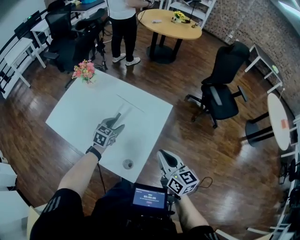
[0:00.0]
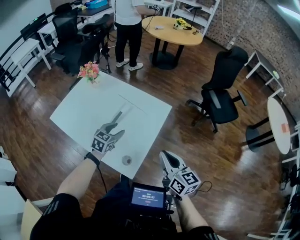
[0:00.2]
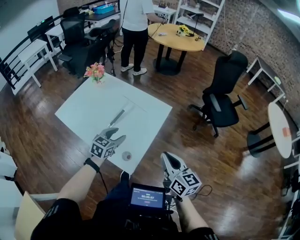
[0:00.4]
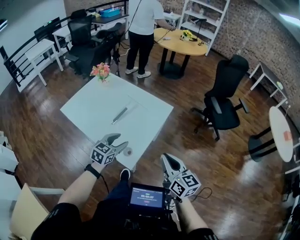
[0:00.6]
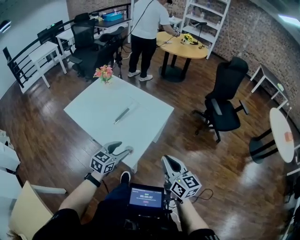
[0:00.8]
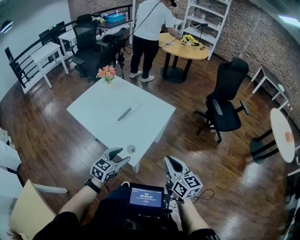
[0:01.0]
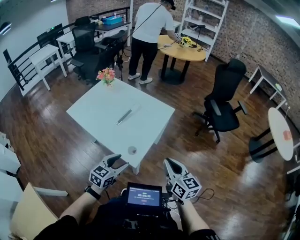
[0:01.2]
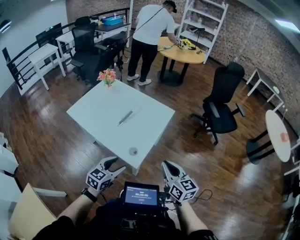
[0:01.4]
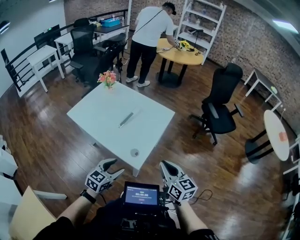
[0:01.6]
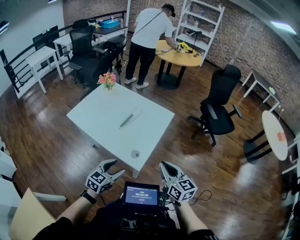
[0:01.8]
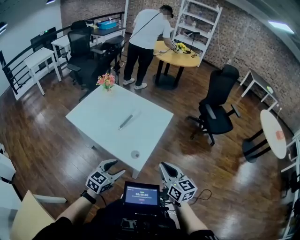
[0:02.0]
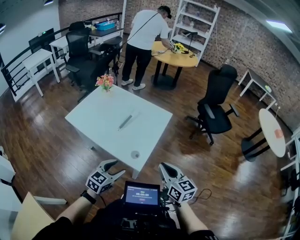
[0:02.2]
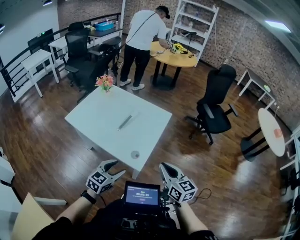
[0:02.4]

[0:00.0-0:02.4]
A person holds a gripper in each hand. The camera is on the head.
0:00.0 to 0:01.2: The left gripper is displaced backward by roughly 35 cm. The right gripper moves backward, roughly 20 cm.
0:01.2 to 0:02.4: Both grippers move to the left, approximately 5 cm.

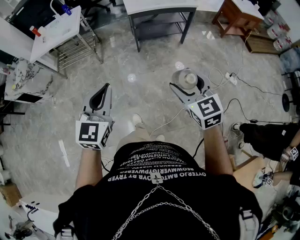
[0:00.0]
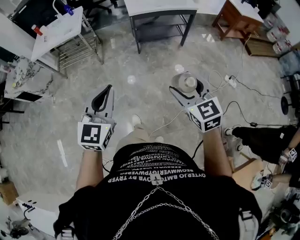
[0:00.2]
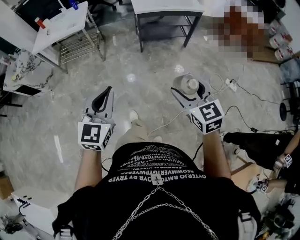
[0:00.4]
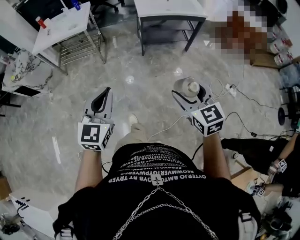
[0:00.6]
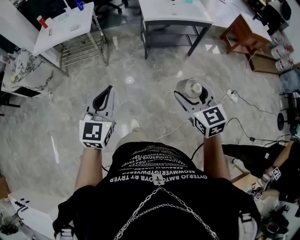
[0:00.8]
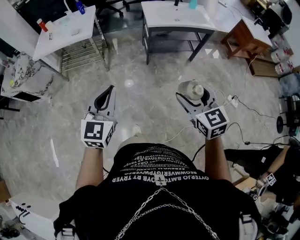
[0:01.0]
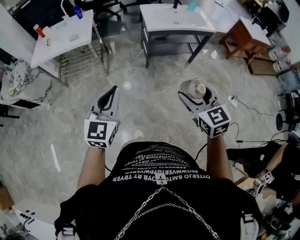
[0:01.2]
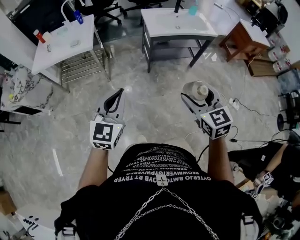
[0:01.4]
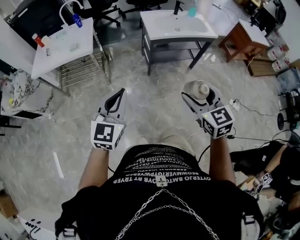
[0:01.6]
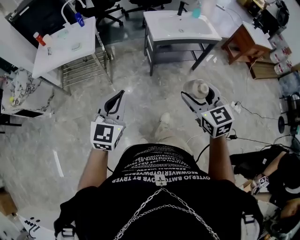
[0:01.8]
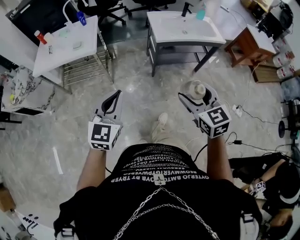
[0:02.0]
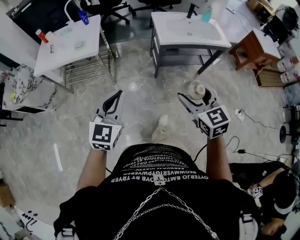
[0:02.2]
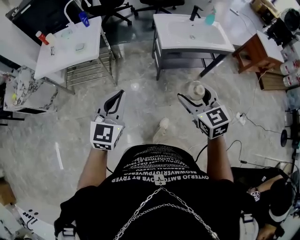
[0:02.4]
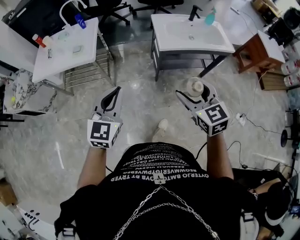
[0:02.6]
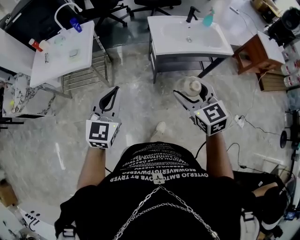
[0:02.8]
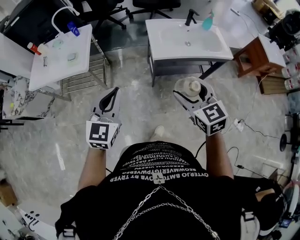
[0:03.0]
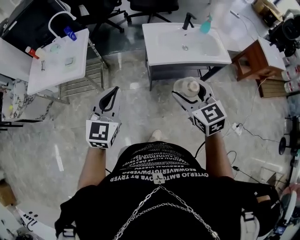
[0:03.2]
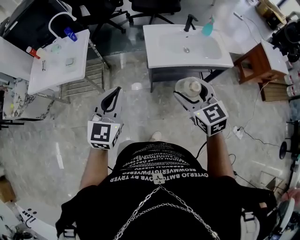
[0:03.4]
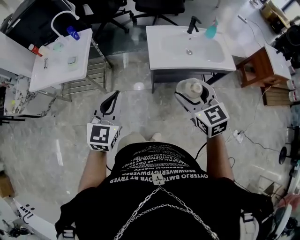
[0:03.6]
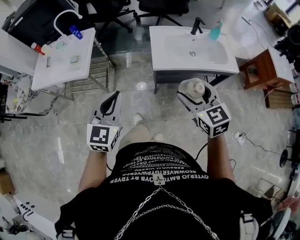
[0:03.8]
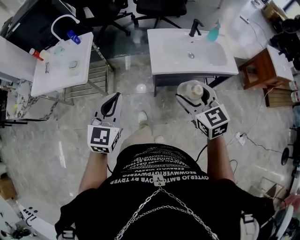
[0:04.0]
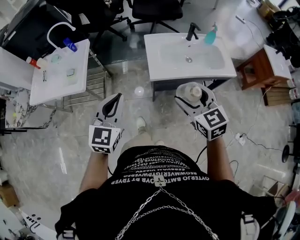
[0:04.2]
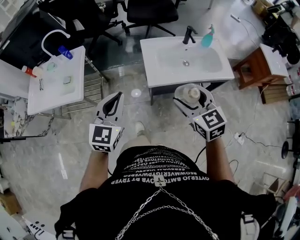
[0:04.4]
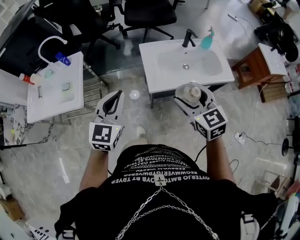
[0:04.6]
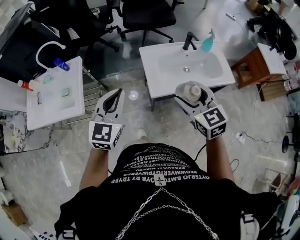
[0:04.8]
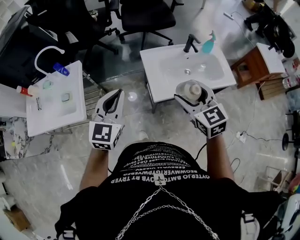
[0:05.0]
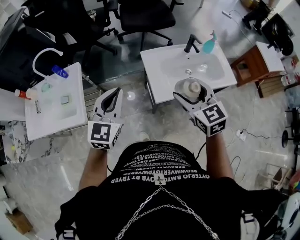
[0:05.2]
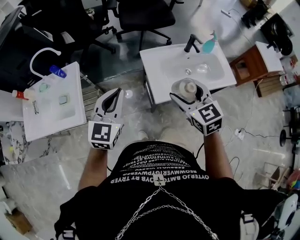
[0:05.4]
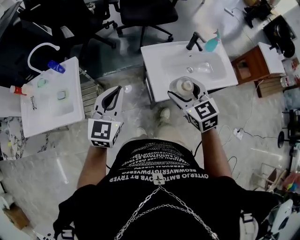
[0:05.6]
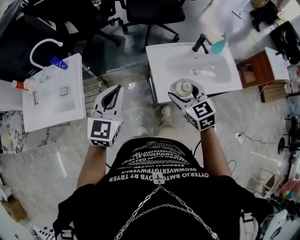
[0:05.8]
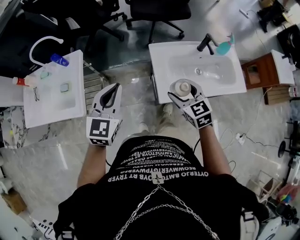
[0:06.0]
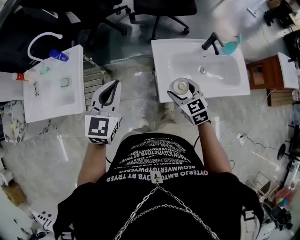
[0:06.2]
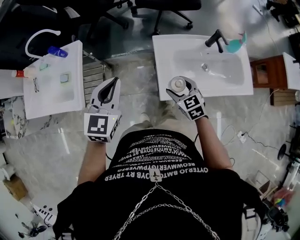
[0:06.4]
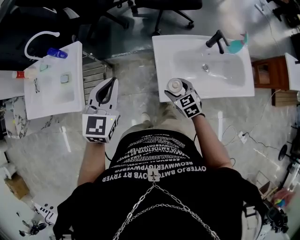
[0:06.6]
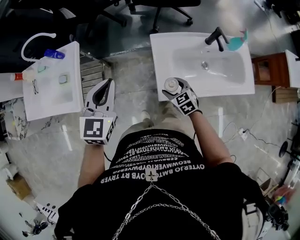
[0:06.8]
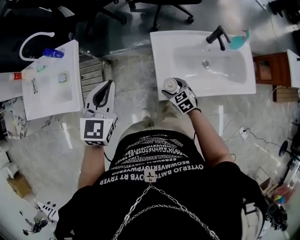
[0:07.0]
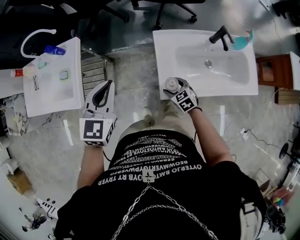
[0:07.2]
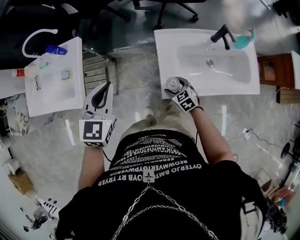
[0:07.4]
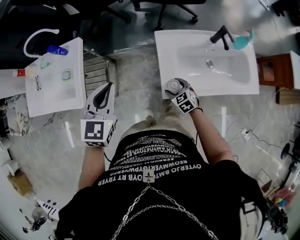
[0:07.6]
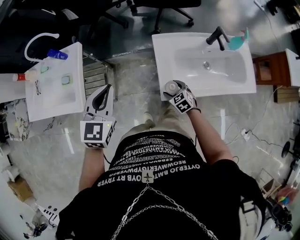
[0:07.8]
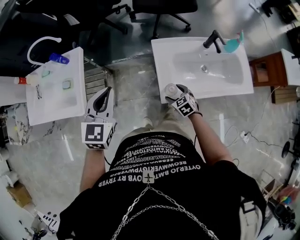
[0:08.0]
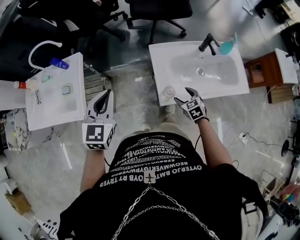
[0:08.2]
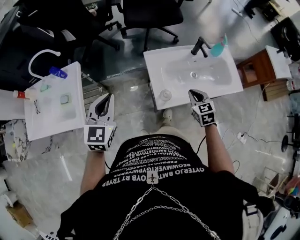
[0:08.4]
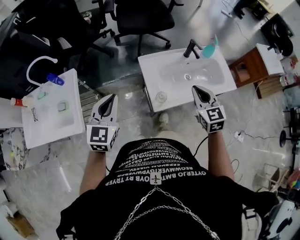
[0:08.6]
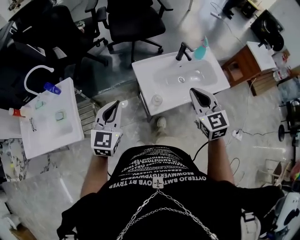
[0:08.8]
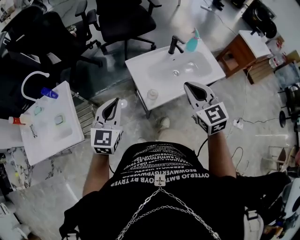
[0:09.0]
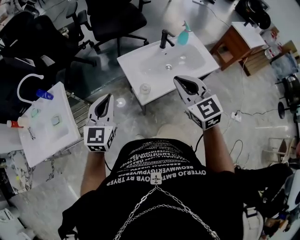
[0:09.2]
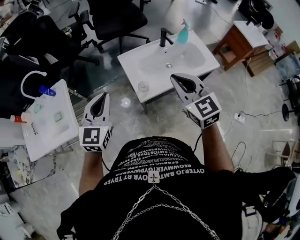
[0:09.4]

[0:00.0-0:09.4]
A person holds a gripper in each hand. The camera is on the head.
0:00.0 to 0:01.6: The two grippers go about 30 cm forward and to the left.
0:01.6 to 0:03.2: The two grippers go about 30 cm forward.
0:03.2 to 0:04.8: Both grippers travel together forward, roughly 25 cm.
0:04.8 to 0:06.2: The right gripper heads downward and forward, covering roughly 25 cm, while the left gripper goes about 15 cm forward and downward.
0:06.2 to 0:07.8: The right gripper heads downward, covering roughly 20 cm.
0:07.8 to 0:09.4: The left gripper ends up about 15 cm from where it was, and changes its angle by approximately 20 degrees, while the right gripper travels upward by roughly 40 cm, points its fingers about 40 degrees further upward, and closes up.

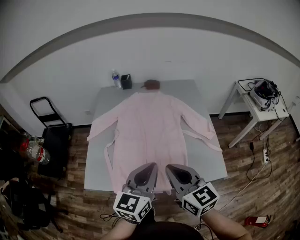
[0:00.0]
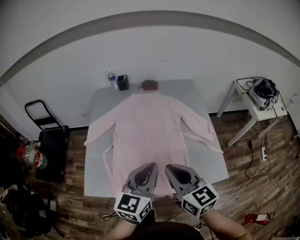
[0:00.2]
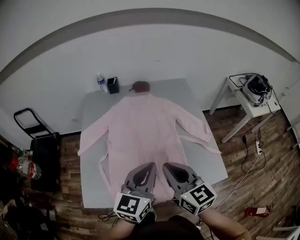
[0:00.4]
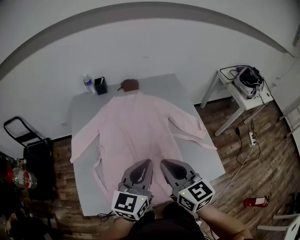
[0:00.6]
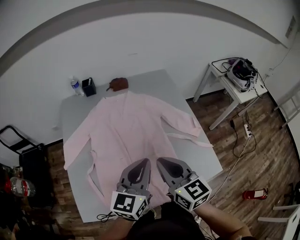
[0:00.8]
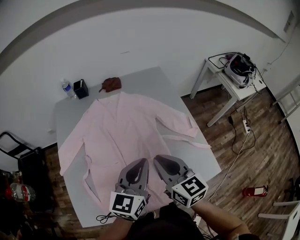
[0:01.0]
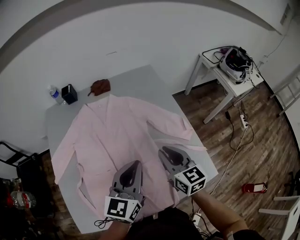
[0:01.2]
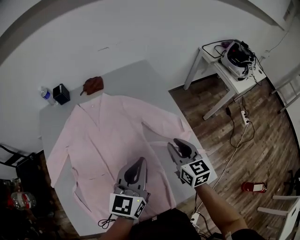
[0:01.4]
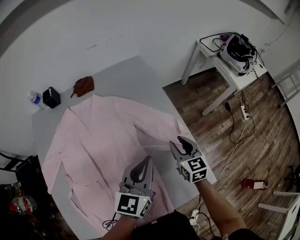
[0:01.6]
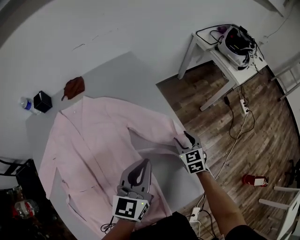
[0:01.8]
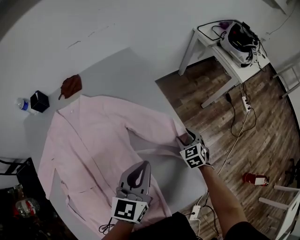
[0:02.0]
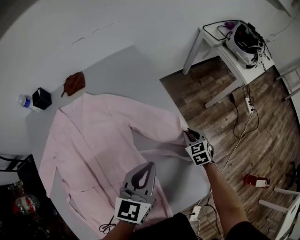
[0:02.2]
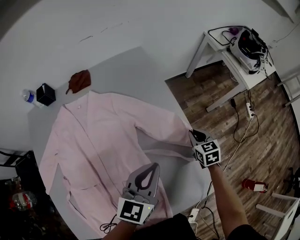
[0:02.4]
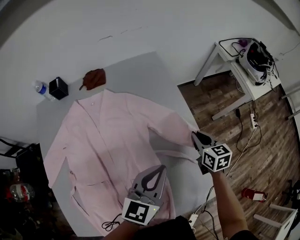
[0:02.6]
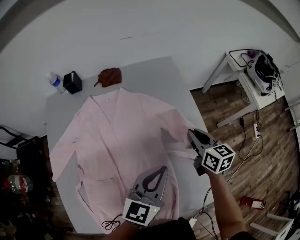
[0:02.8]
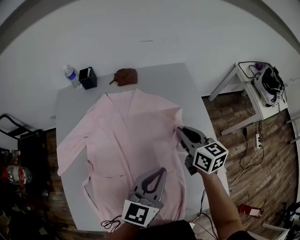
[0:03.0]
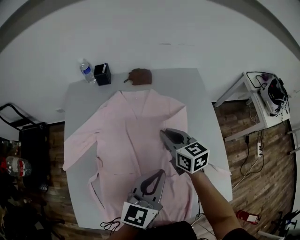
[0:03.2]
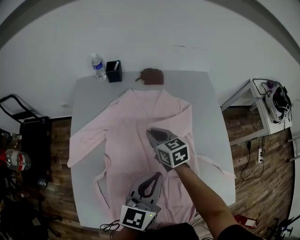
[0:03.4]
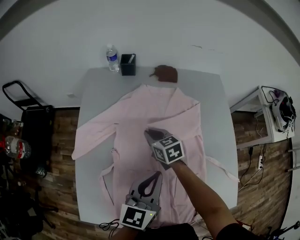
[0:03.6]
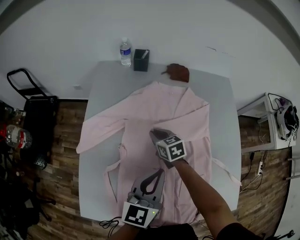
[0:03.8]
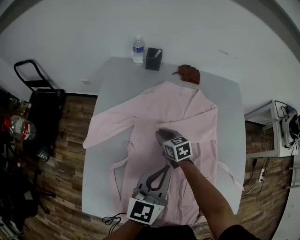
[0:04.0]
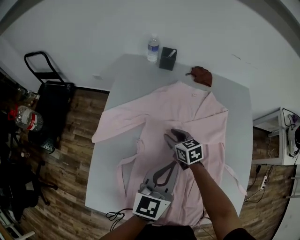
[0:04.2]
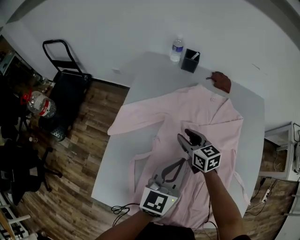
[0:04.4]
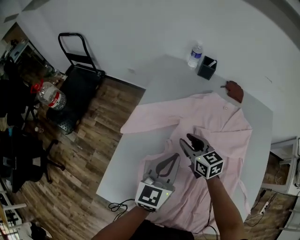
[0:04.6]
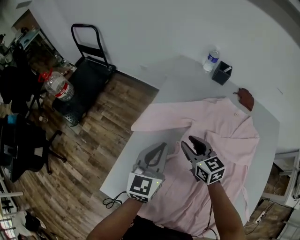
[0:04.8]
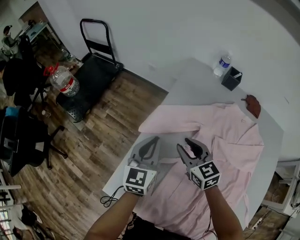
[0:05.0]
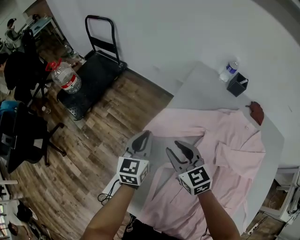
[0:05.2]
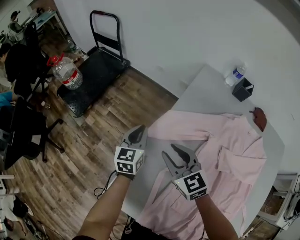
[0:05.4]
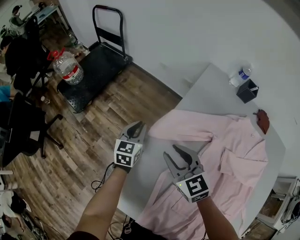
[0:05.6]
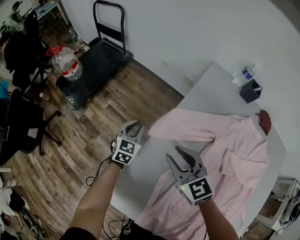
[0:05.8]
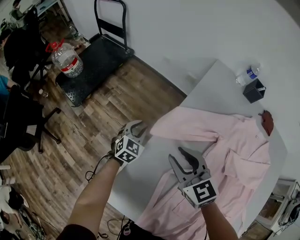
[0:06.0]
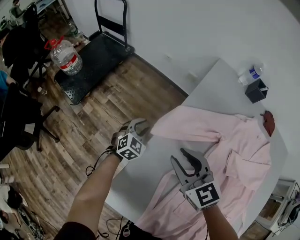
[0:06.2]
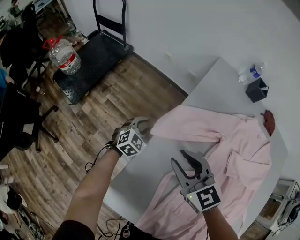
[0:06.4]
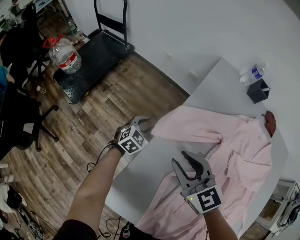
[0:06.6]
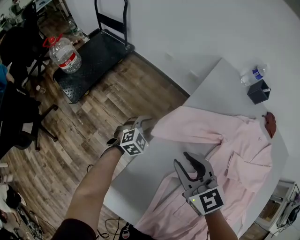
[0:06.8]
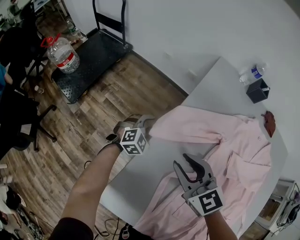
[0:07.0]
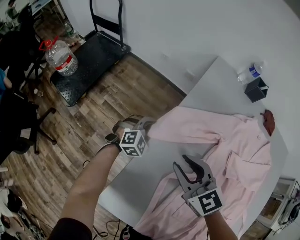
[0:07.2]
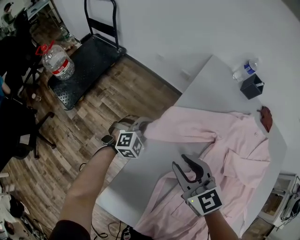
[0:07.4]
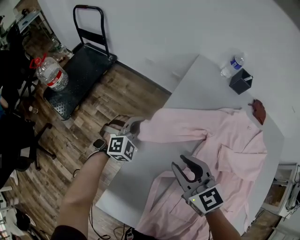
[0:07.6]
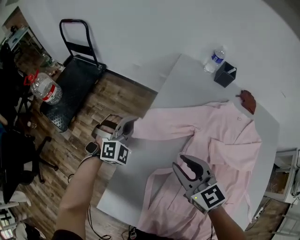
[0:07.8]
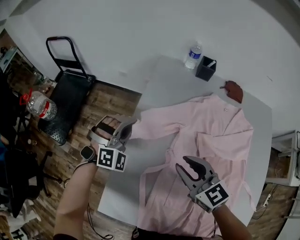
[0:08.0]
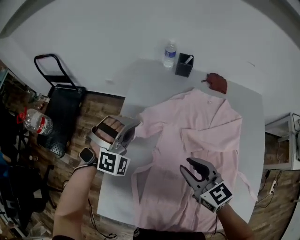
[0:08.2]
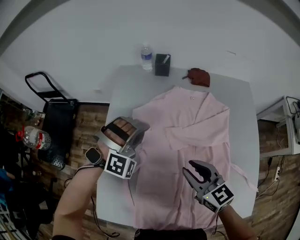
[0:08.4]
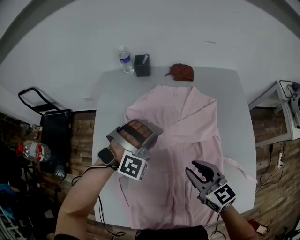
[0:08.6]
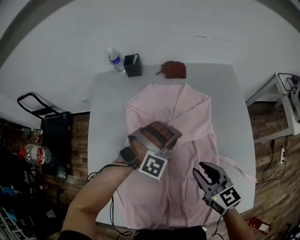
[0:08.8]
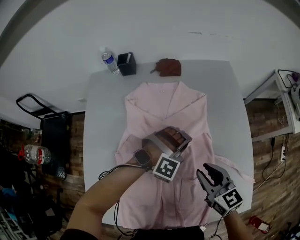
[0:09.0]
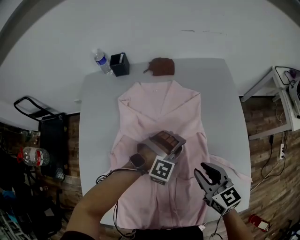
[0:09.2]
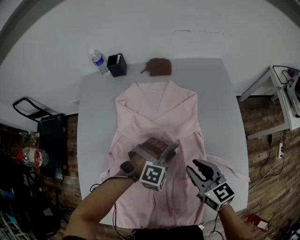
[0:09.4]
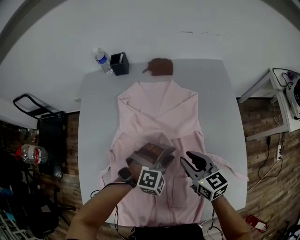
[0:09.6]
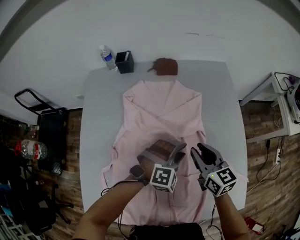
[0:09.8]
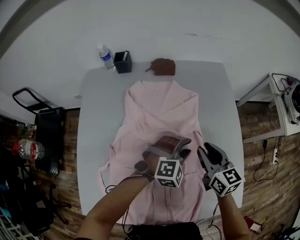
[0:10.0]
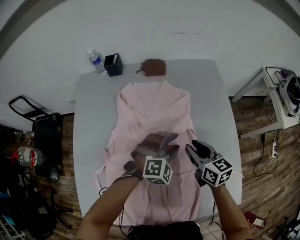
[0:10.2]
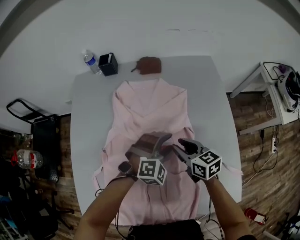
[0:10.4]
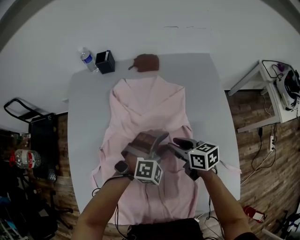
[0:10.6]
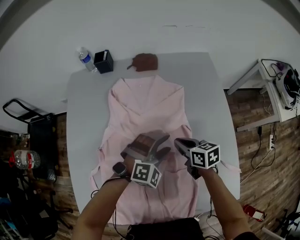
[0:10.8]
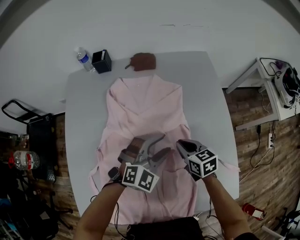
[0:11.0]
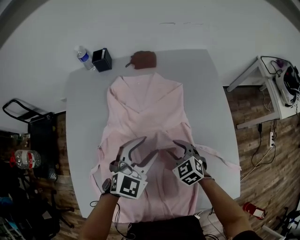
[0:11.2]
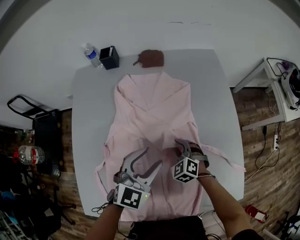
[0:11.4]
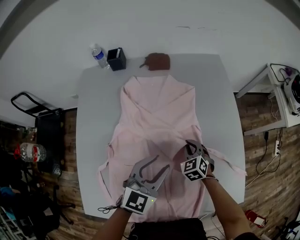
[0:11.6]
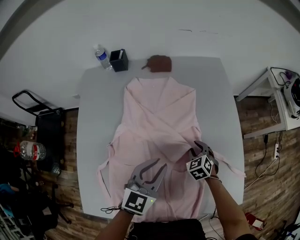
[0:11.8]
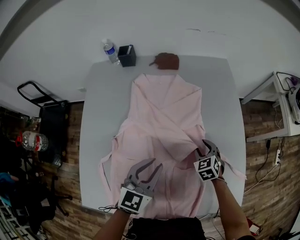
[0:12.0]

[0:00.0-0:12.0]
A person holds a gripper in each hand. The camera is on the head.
0:00.0 to 0:01.6: The right gripper changes place by some 50 cm, turns by approximately 40 degrees, and opens; the left gripper changes place by approximately 35 cm.
0:01.6 to 0:03.0: The right gripper heads to the left and upward, covering some 20 cm, changes its angle by approximately 20 degrees, and closes up. Meanwhile the left gripper travels to the left by roughly 10 cm.
0:03.0 to 0:04.4: The left gripper moves some 25 cm, and changes its angle by some 30 degrees. The right gripper changes place by approximately 35 cm, turns by approximately 30 degrees, and opens up.
0:04.4 to 0:06.0: The left gripper changes place by roughly 50 cm, and turns by about 40 degrees; the right gripper moves about 25 cm, and swivels about 30 degrees.
0:06.0 to 0:07.6: The left gripper is displaced to the right and upward by approximately 10 cm, and turns by approximately 40 degrees. The right gripper changes place by about 5 cm.
0:07.6 to 0:09.0: The two grippers travel together, some 50 cm. The right gripper changes its angle by about 40 degrees. The left gripper twists approximately 50 degrees clockwise, seen from behind.
0:09.0 to 0:10.4: The right gripper heads forward and downward, covering roughly 10 cm. Meanwhile the left gripper rotates roughly 30 degrees, and opens its fingers.
0:10.4 to 0:12.0: The right gripper moves downward and to the right, some 10 cm, rotates roughly 50 degrees, and closes, then reopens. The left gripper moves backward, to the left and upward, about 15 cm, and rotates around the line of its fingers by some 60 degrees, counterclockwise from behind.
